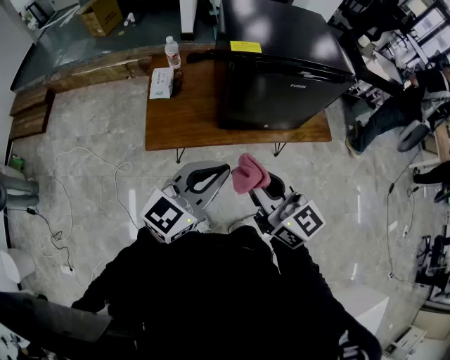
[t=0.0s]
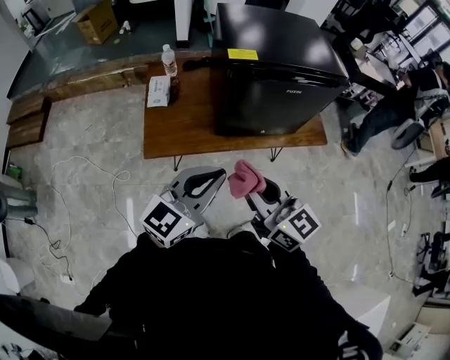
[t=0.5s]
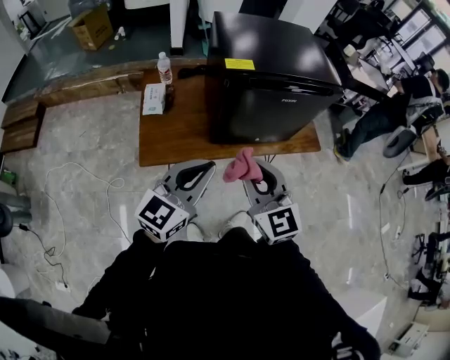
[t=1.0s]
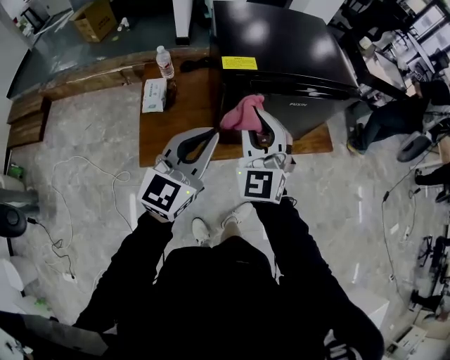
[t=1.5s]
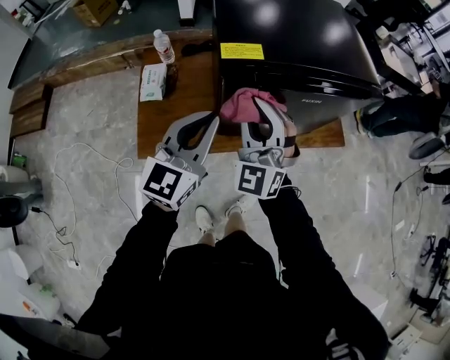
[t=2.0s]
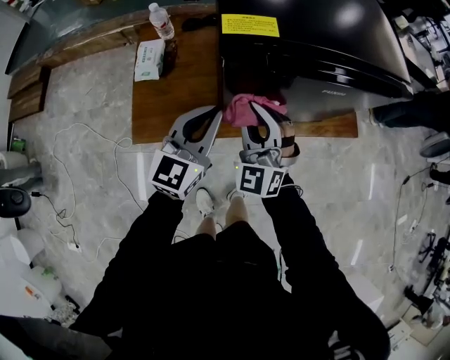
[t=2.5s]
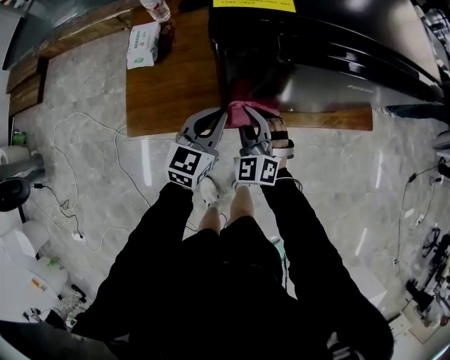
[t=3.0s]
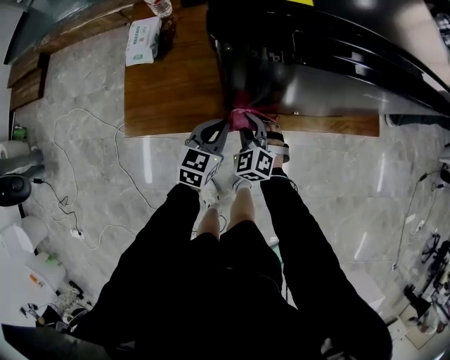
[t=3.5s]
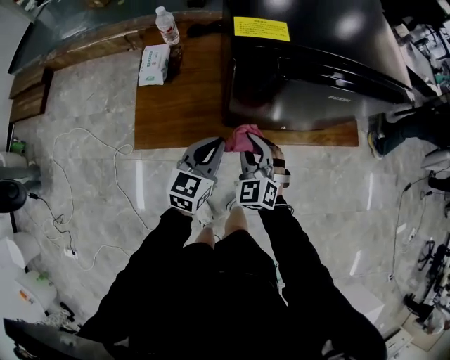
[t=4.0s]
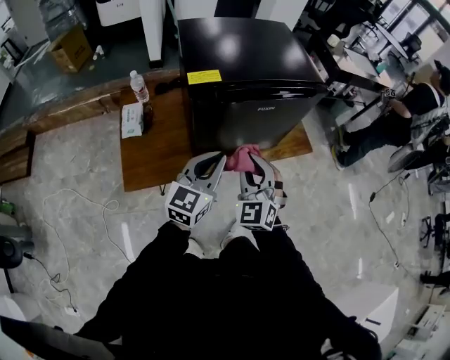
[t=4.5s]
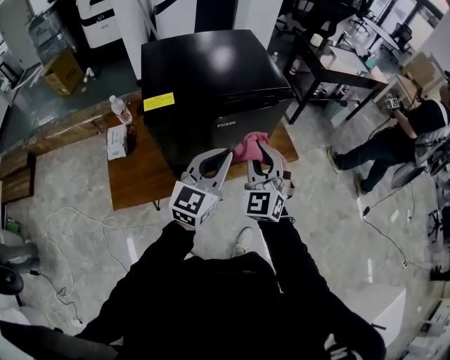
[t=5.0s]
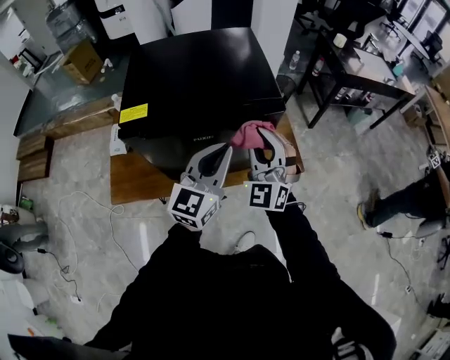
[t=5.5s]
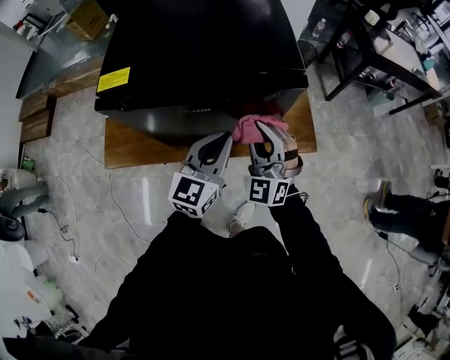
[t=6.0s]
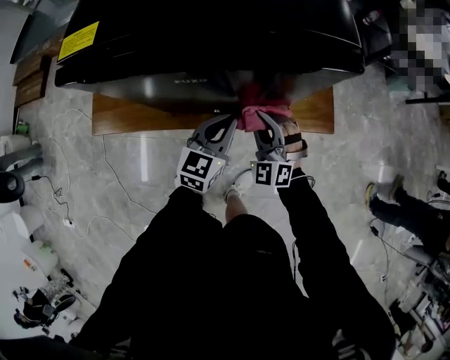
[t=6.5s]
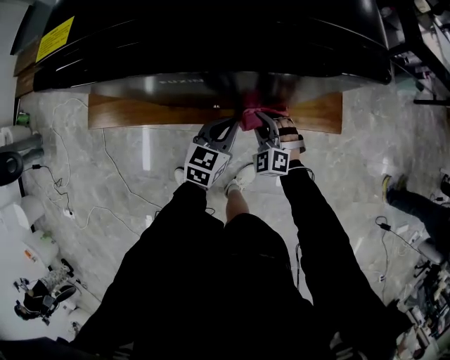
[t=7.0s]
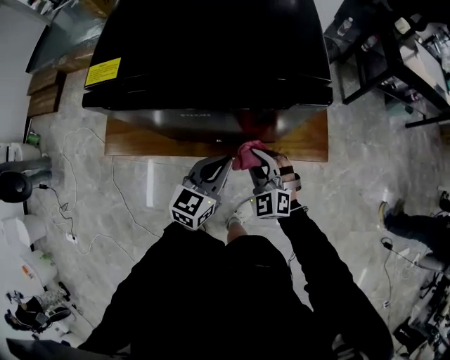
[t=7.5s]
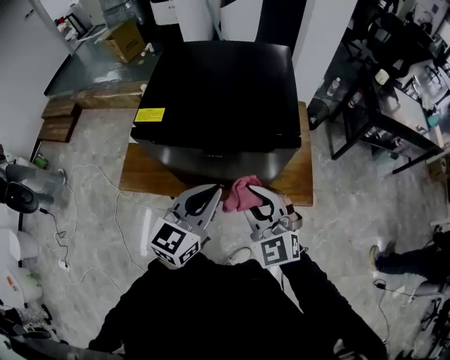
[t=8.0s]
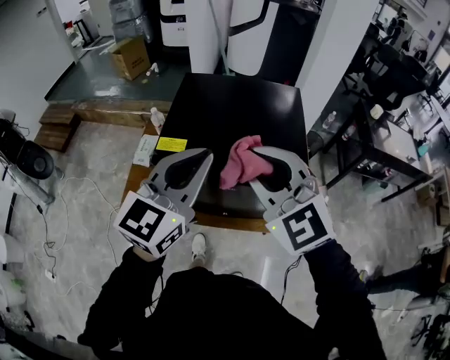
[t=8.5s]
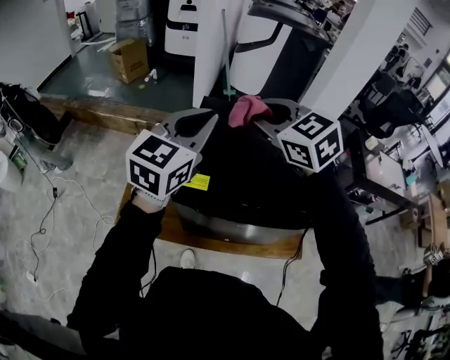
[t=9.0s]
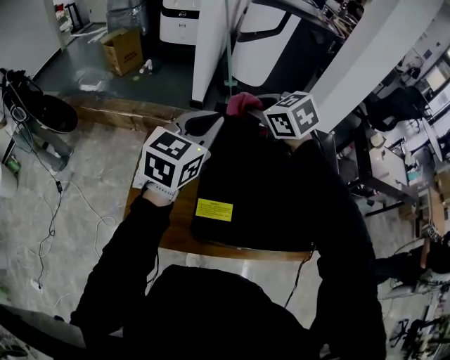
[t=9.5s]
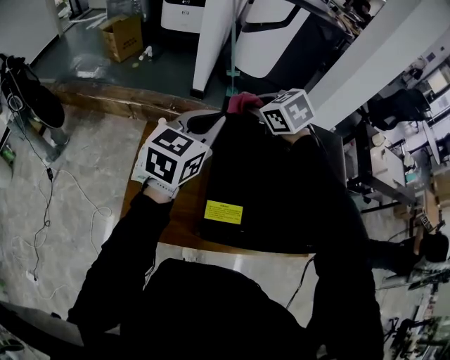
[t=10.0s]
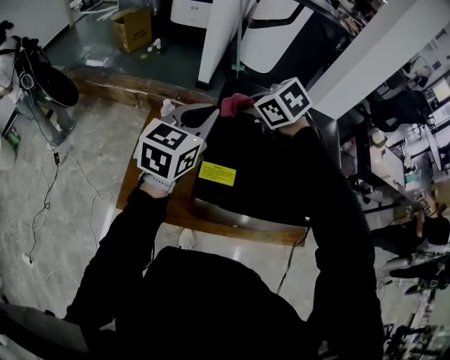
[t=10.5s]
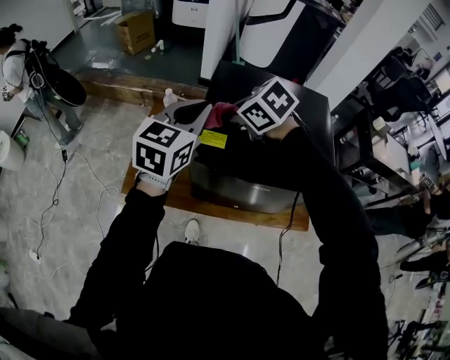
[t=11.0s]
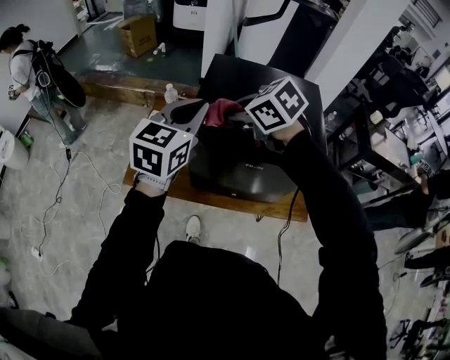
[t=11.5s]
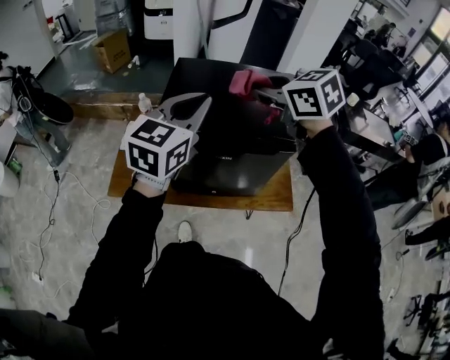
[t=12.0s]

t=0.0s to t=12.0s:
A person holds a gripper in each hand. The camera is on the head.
t=0.0s to t=2.0s: Both grippers move forward, some 25 cm. The right gripper rotates around the line of its fingers by roughly 60 degrees, counterclockwise from behind.
t=2.0s to t=4.0s: The grippers both shift downward by some 25 cm. The right gripper changes its angle by about 30 degrees.
t=4.0s to t=6.0s: The grippers both shift to the right, upward and forward by approximately 35 cm. The right gripper swivels approximately 20 degrees.
t=6.0s to t=8.0s: The right gripper heads backward, covering roughly 5 cm, travels downward and back again, roughly 35 cm each way, and swivels roughly 30 degrees. Meanwhile the left gripper moves about 25 cm downward and comes back.
t=8.0s to t=10.0s: Both grippers are carried forward and to the left, some 50 cm. The right gripper angles its fingers downward, by roughly 30 degrees.
t=10.0s to t=12.0s: The grippers both shift backward by about 35 cm.

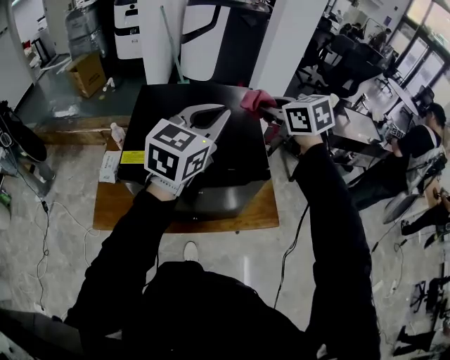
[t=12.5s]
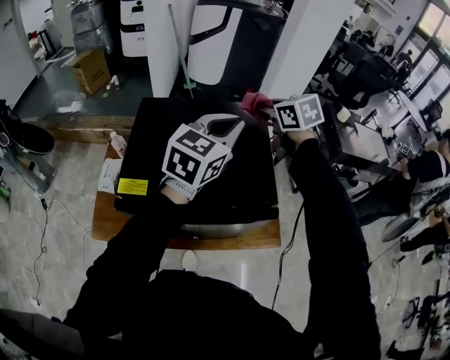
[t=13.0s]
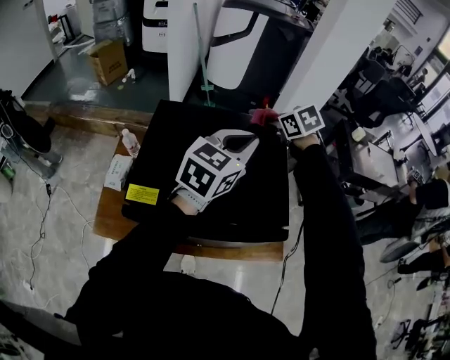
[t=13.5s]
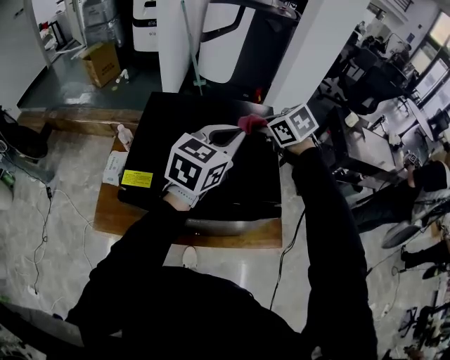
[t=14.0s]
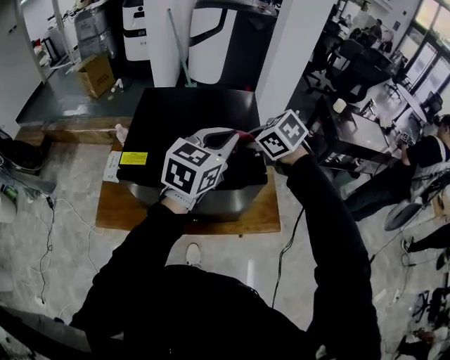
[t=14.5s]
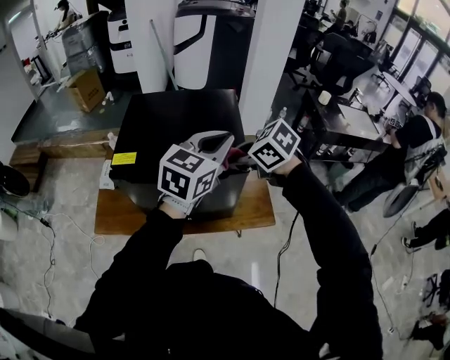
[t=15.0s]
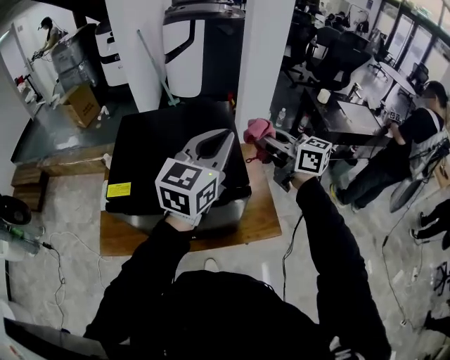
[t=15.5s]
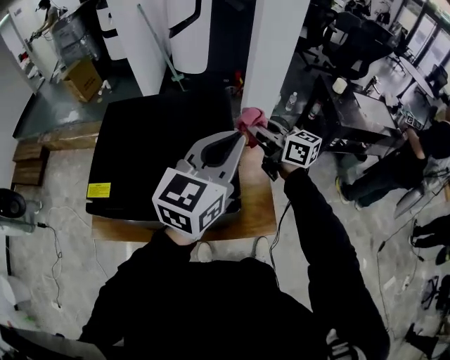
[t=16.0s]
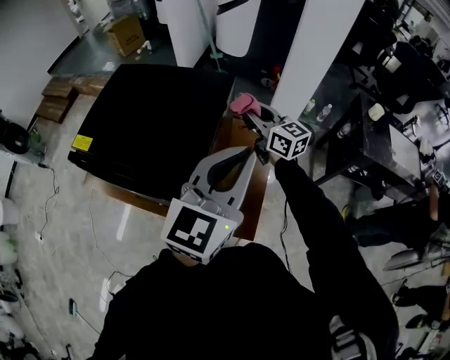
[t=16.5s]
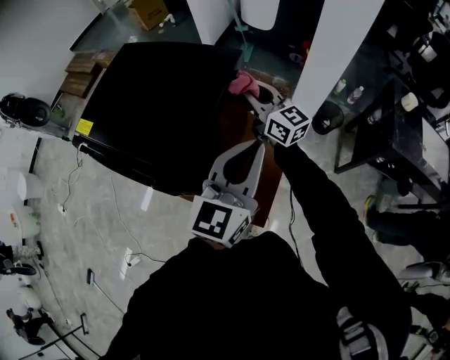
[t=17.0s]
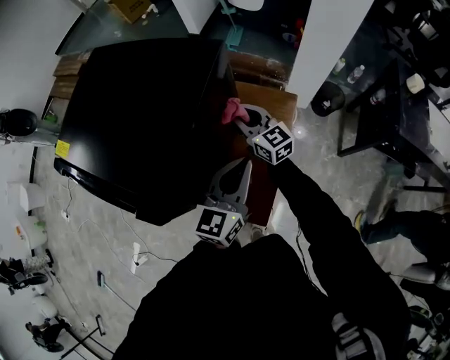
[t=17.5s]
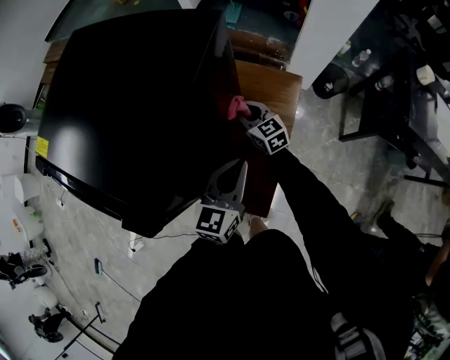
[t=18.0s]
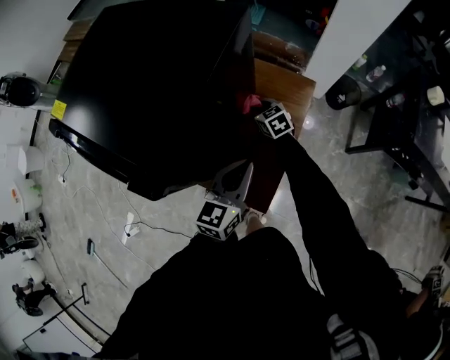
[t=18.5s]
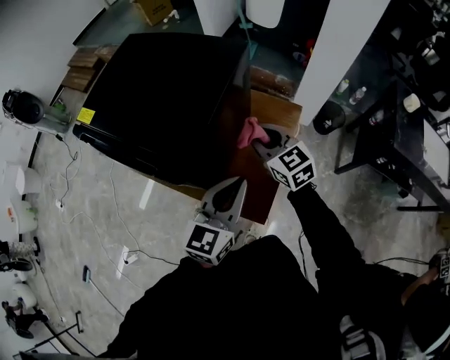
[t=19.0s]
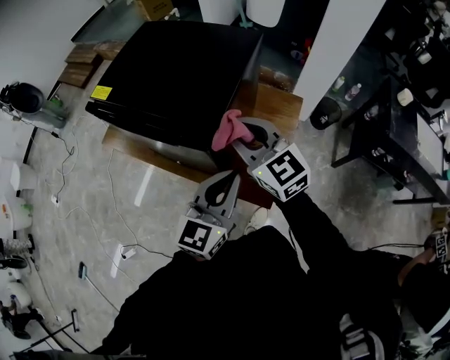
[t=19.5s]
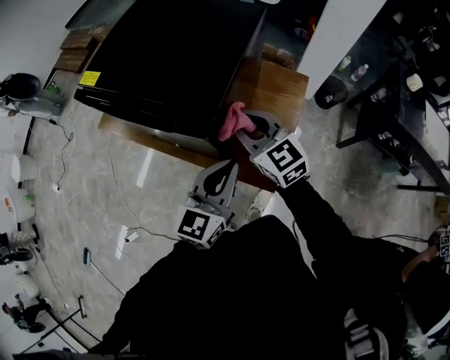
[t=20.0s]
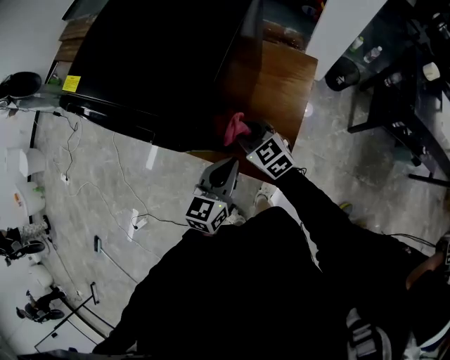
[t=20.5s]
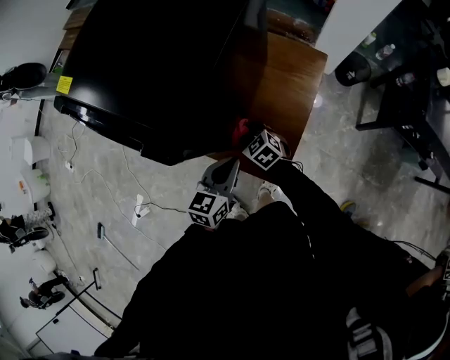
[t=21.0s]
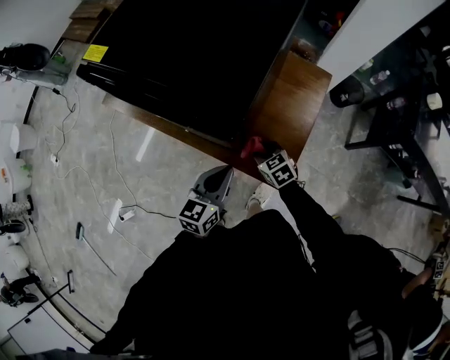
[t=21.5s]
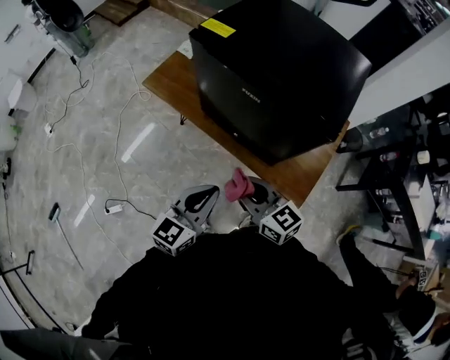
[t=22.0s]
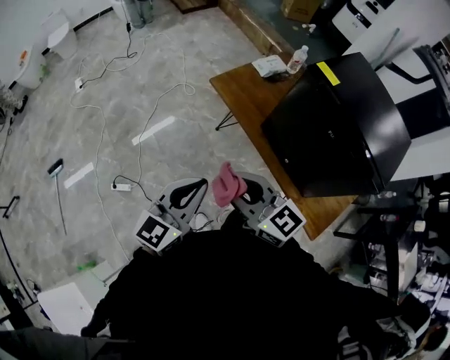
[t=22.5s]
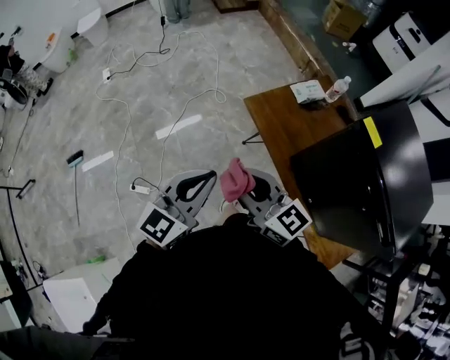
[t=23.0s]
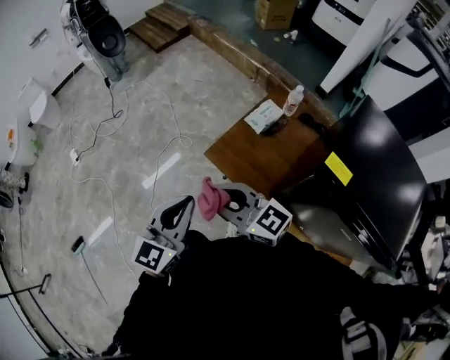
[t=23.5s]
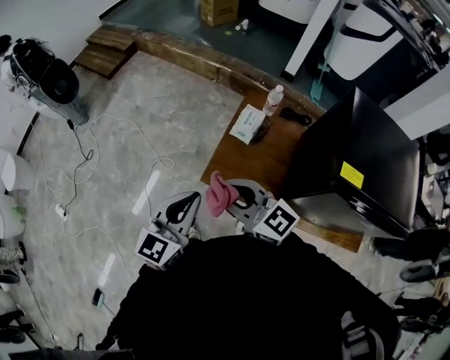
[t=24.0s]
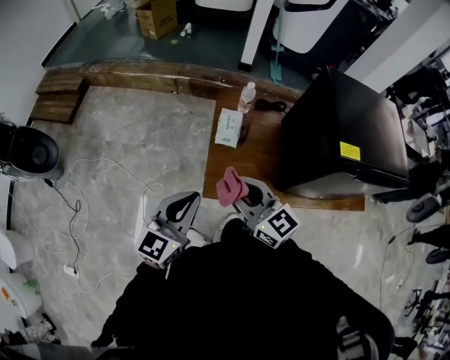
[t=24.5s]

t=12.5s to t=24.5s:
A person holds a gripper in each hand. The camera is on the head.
t=12.5s to t=14.5s: The left gripper heads downward, covering about 5 cm, and moves about 15 cm forward and comes back, while the right gripper heads downward, covering about 10 cm, travels forward and back again, approximately 20 cm each way, and turns by some 30 degrees.
t=14.5s to t=16.5s: The left gripper goes roughly 25 cm to the right, and changes its angle by approximately 20 degrees; the right gripper heads to the right and forward, covering about 25 cm, and angles its fingers upward, by some 50 degrees.
t=16.5s to t=18.5s: Both grippers move downward, about 35 cm. The left gripper turns by some 30 degrees; the right gripper angles its fingers downward, by roughly 40 degrees.
t=18.5s to t=20.5s: The left gripper goes roughly 15 cm to the left and backward, and moves approximately 20 cm upward and comes back. The right gripper travels backward, upward and to the left by roughly 25 cm.
t=20.5s to t=22.5s: Both grippers are carried roughly 60 cm. The right gripper swivels approximately 40 degrees. Meanwhile the left gripper swivels roughly 30 degrees.
t=22.5s to t=24.5s: Both grippers are carried about 60 cm. The left gripper rotates approximately 40 degrees, while the right gripper rotates some 50 degrees.

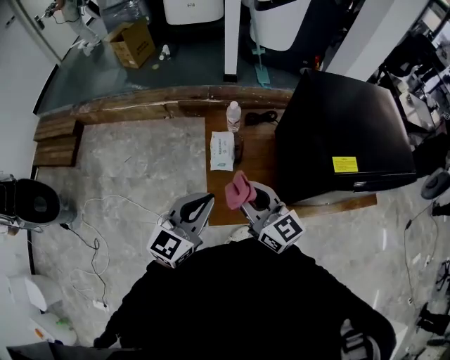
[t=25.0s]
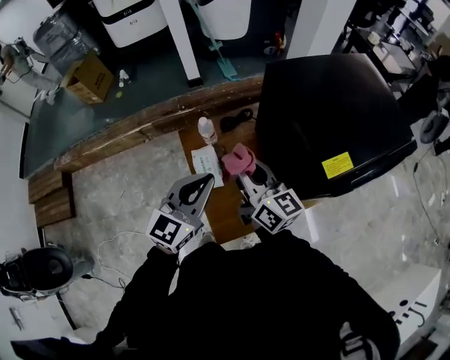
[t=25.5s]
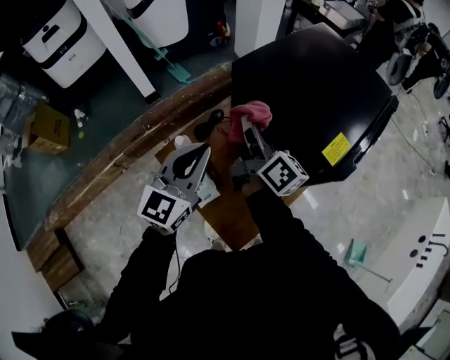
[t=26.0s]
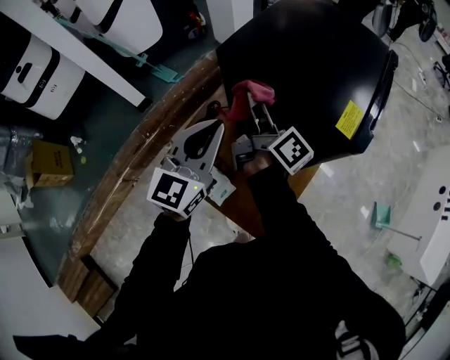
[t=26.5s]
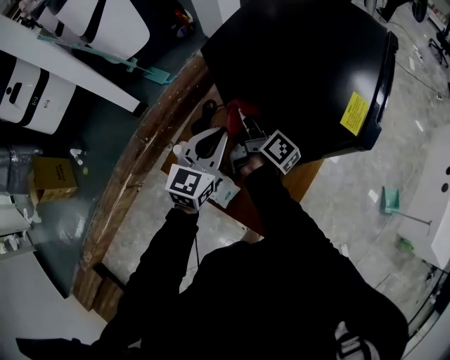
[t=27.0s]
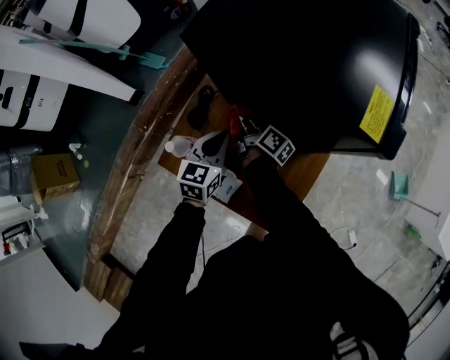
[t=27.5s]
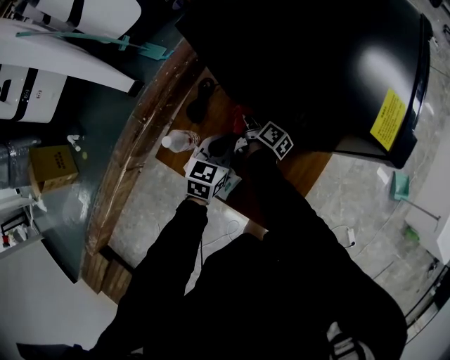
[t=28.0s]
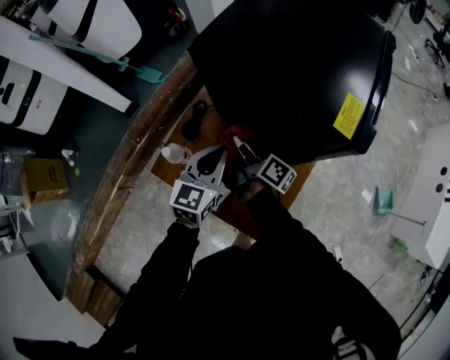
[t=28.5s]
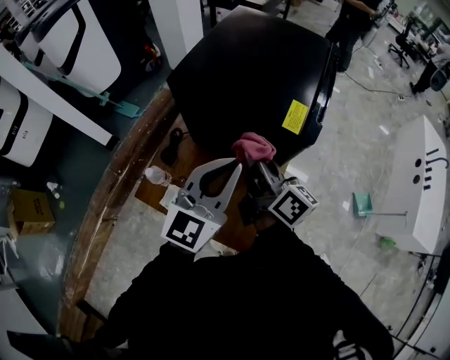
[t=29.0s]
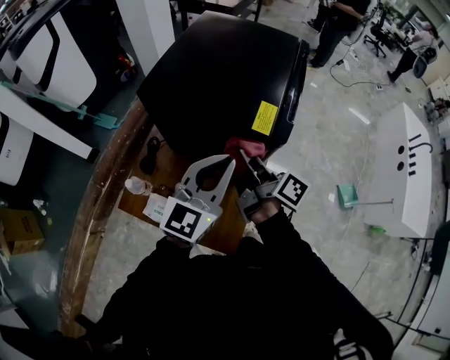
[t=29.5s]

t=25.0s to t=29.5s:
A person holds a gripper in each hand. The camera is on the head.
t=25.0s to t=27.0s: The left gripper ends up roughly 35 cm from where it was, and changes its angle by roughly 50 degrees. Meanwhile the right gripper changes place by some 40 cm, and swivels roughly 100 degrees.
t=27.0s to t=29.5s: The right gripper goes up and down, some 40 cm each way, reversing 2 times. The left gripper heads to the right and upward, covering approximately 20 cm, and turns by approximately 20 degrees.
